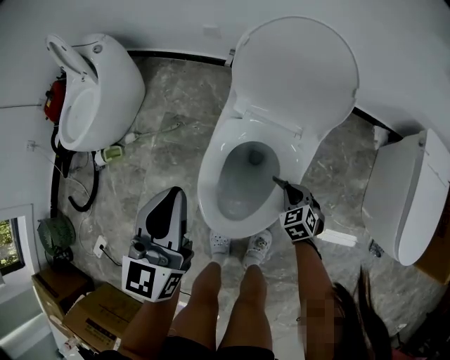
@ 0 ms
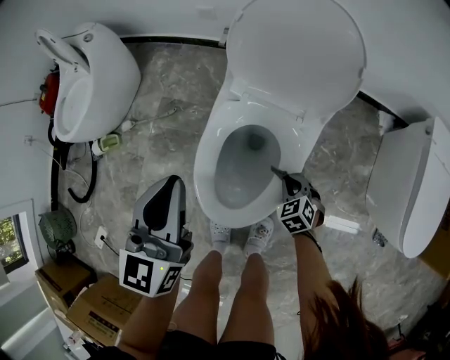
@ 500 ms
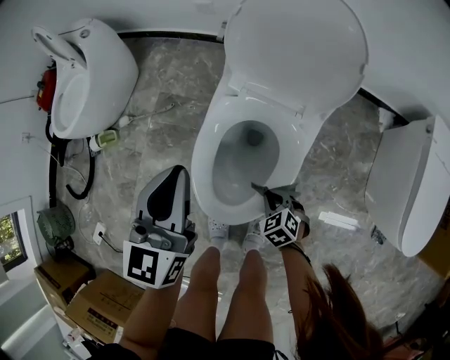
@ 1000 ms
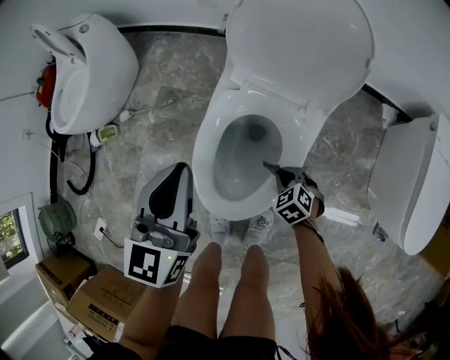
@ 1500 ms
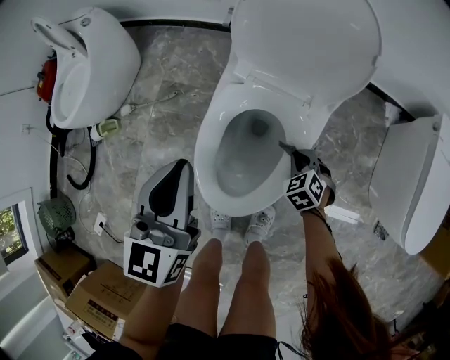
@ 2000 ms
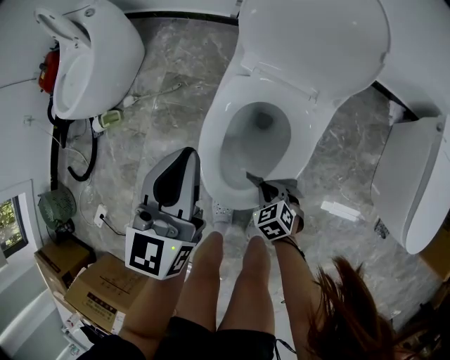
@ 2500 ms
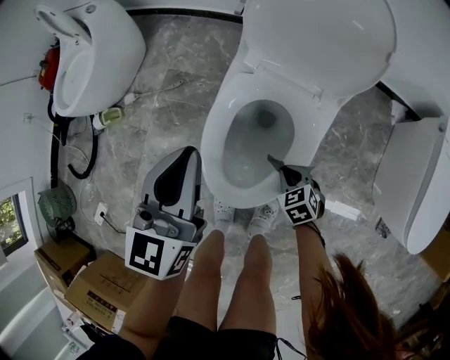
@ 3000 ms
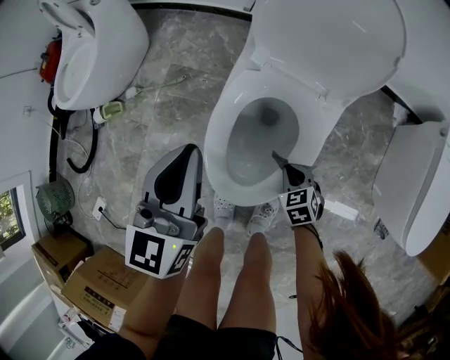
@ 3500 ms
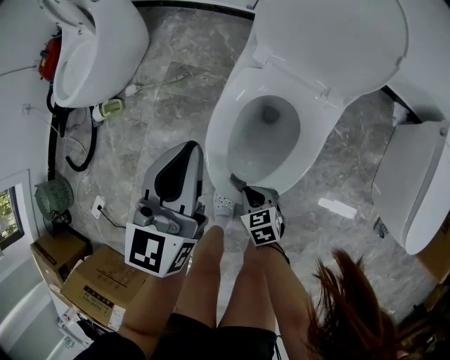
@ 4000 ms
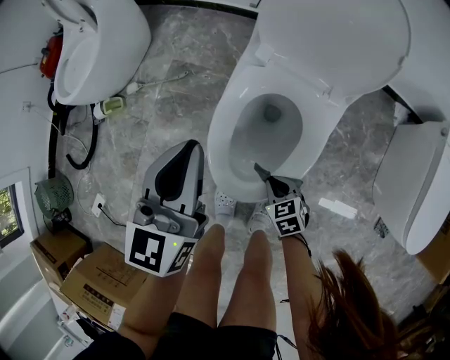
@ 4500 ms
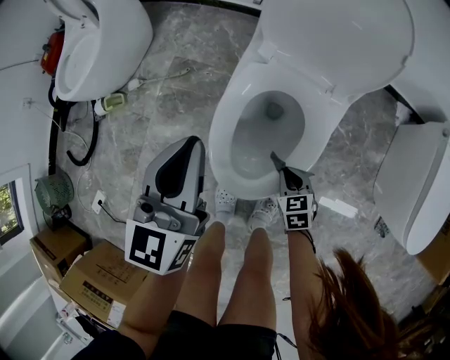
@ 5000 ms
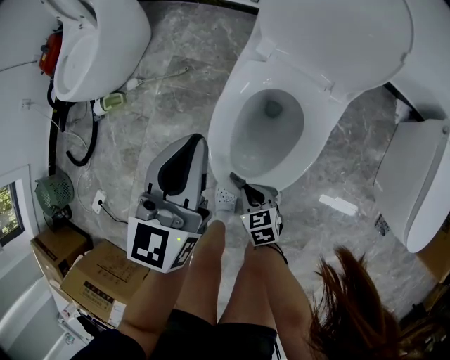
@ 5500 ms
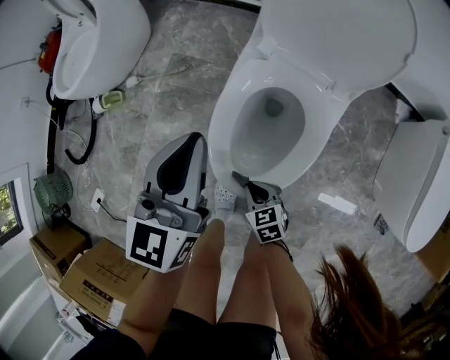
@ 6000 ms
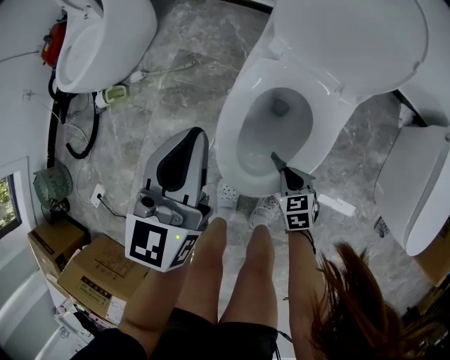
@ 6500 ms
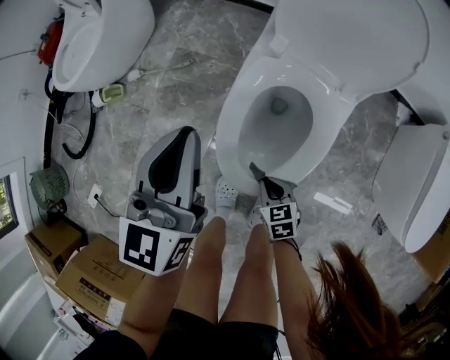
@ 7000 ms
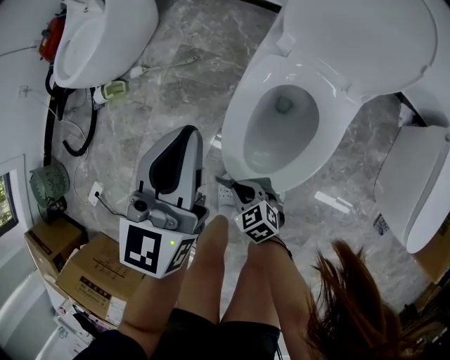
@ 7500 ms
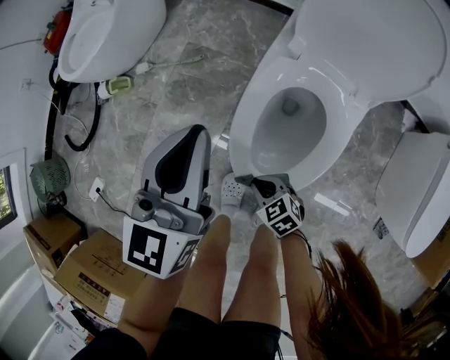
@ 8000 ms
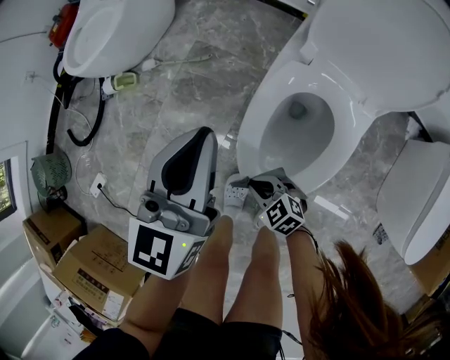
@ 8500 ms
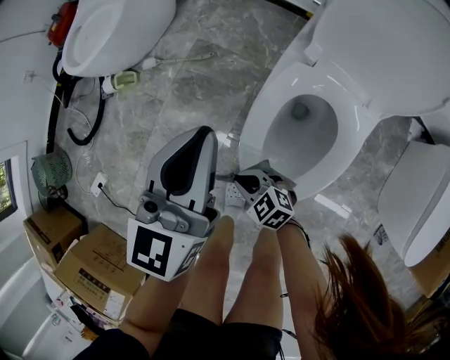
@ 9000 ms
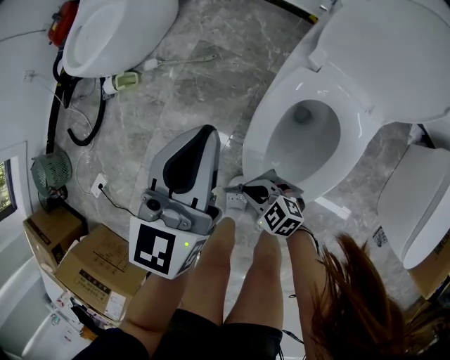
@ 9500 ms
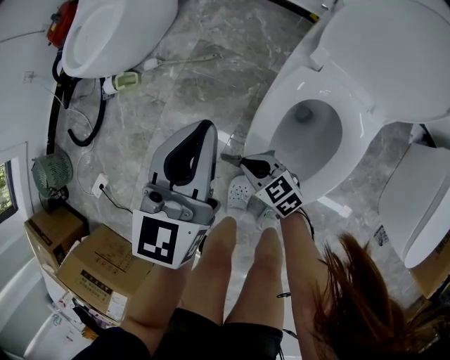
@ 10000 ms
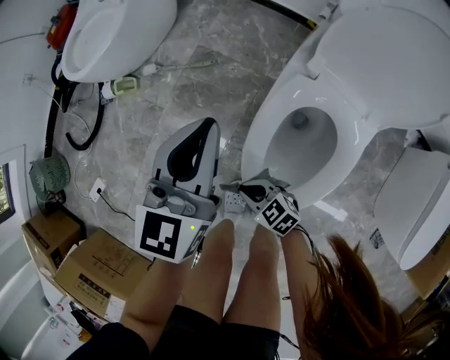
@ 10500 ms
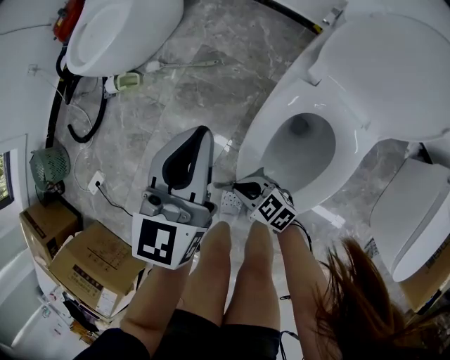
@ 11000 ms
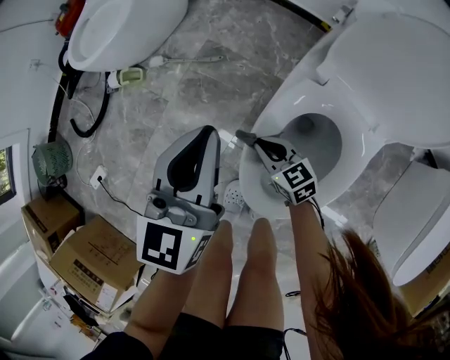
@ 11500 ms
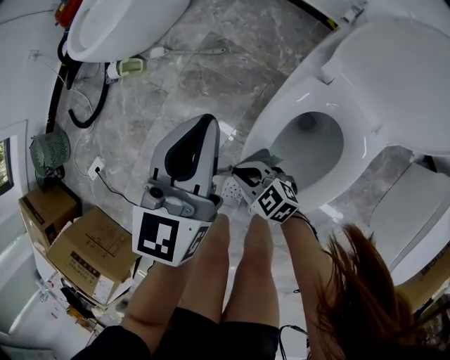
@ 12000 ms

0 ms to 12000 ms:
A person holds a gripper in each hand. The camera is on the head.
0 ms to 2000 ms: The left gripper goes approximately 5 cm downward. The right gripper moves about 5 cm backward and comes back.
2000 ms to 4000 ms: The right gripper moves left and right over some 20 cm, changing direction 2 times, and swivels some 30 degrees.
4000 ms to 6000 ms: The right gripper goes to the right and returns, some 10 cm each way.
6000 ms to 8000 ms: The right gripper moves approximately 10 cm to the right and comes back, and changes its angle by approximately 20 degrees, while the left gripper moves to the left, some 5 cm.
8000 ms to 10000 ms: The left gripper moves forward, roughly 5 cm. Meanwhile the right gripper shifts approximately 15 cm forward.
10000 ms to 12000 ms: The right gripper reaches roughly 10 cm to the right, then returns.

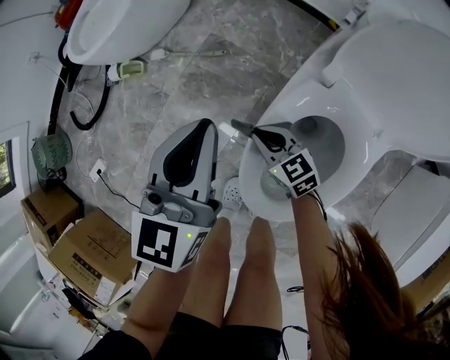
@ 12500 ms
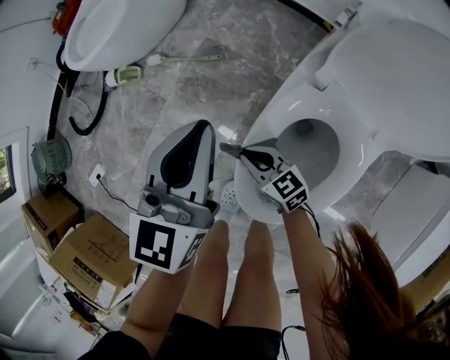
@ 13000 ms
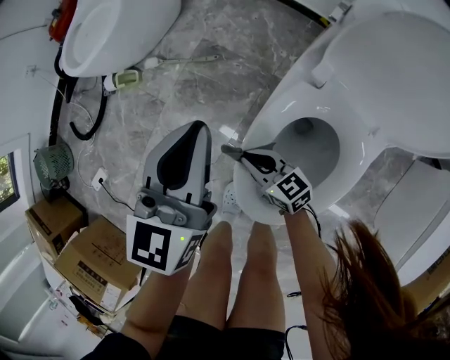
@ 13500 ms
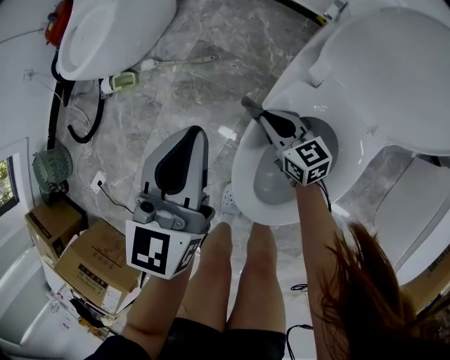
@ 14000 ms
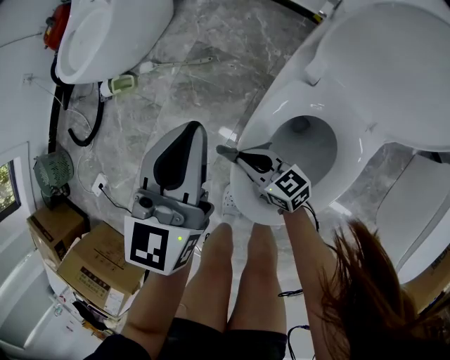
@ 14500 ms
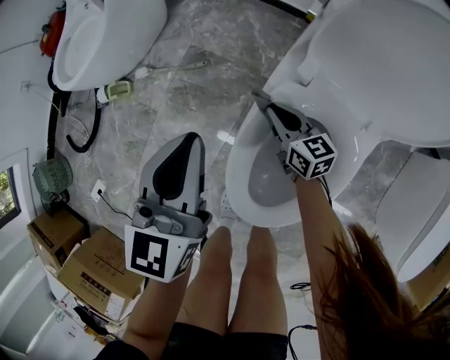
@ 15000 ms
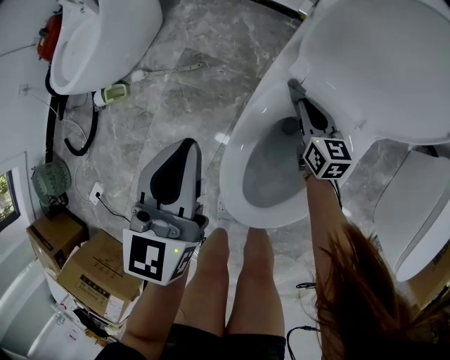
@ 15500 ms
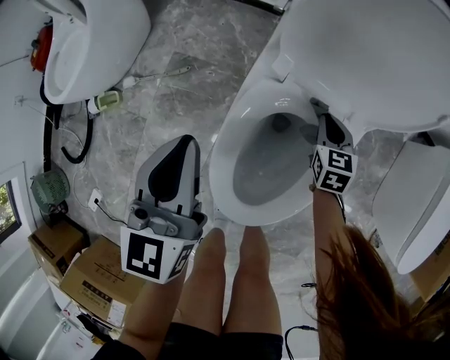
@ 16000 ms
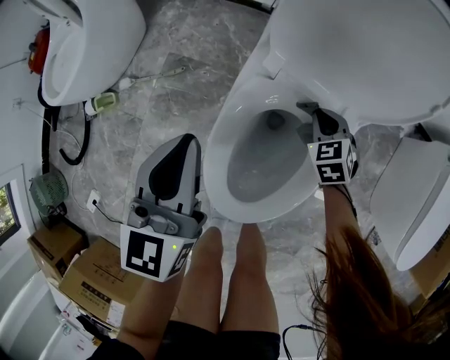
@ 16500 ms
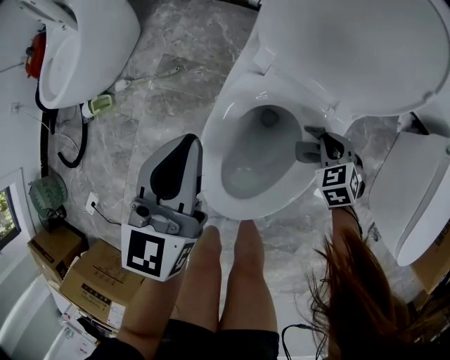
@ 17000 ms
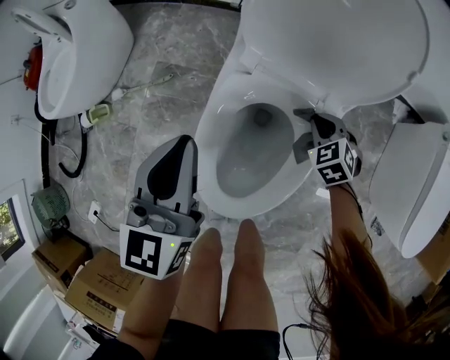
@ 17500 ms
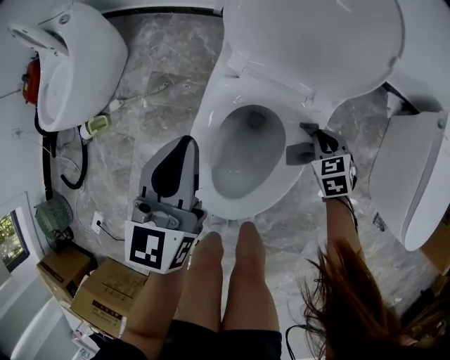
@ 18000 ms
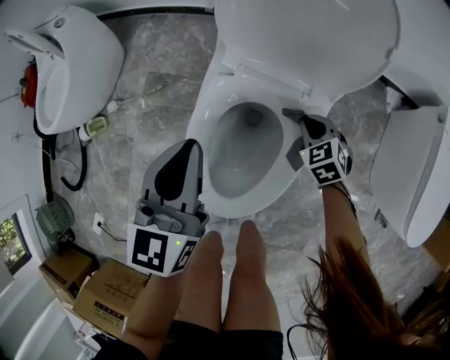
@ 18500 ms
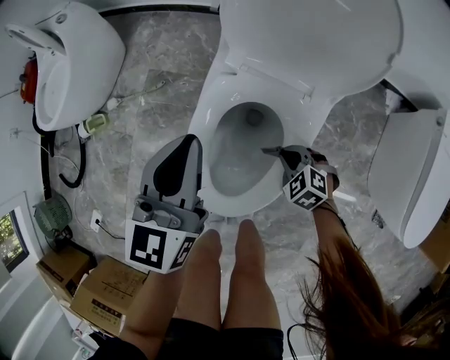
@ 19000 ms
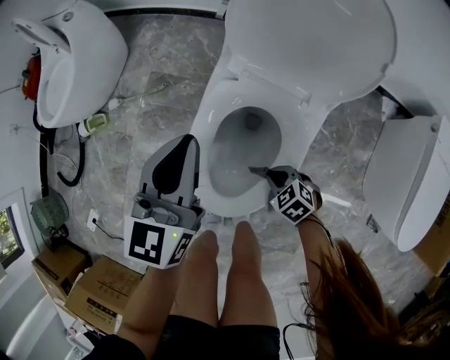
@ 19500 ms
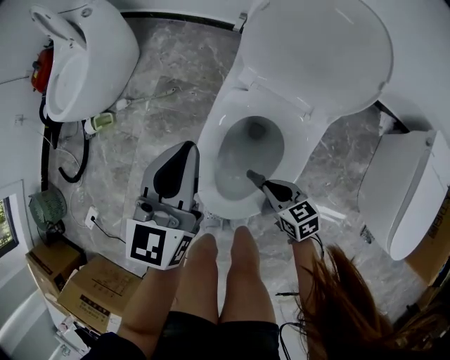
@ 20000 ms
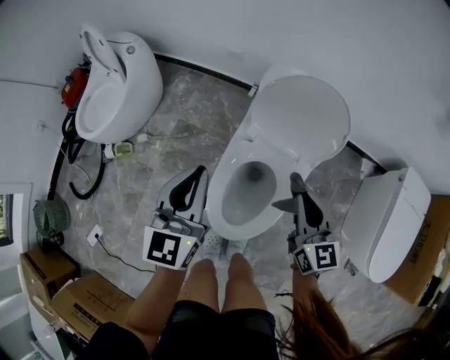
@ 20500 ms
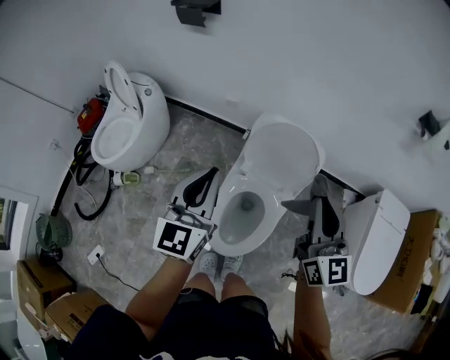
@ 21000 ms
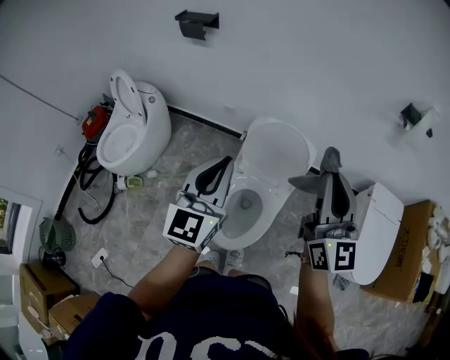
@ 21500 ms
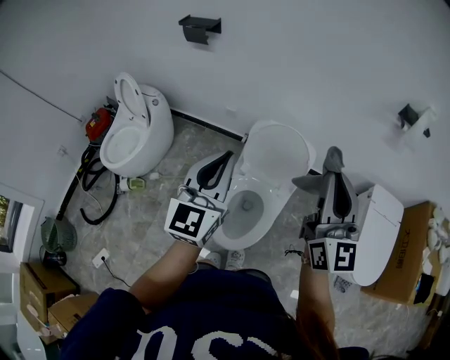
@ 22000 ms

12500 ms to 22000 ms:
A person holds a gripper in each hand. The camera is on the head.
12500 ms to 14500 ms: The right gripper reaches about 5 cm to the right, then returns.
14500 ms to 16500 ms: The right gripper moves roughly 30 cm, and tilts its fingers approximately 30 degrees downward; the left gripper shifts by roughly 10 cm.
16500 ms to 18000 ms: The right gripper heads to the right and backward, covering some 15 cm. The left gripper travels to the right by about 5 cm.
18000 ms to 20000 ms: The left gripper changes place by about 5 cm, while the right gripper shifts by about 20 cm, and rotates approximately 40 degrees.
20000 ms to 22000 ms: The left gripper shifts about 40 cm upward, and rotates about 20 degrees. The right gripper heads upward, covering roughly 70 cm, and angles its fingers upward, by about 60 degrees.

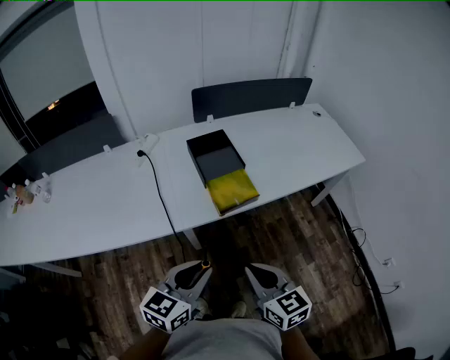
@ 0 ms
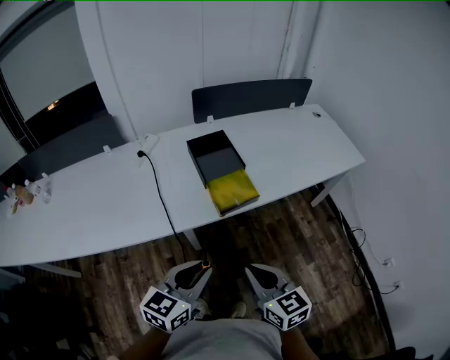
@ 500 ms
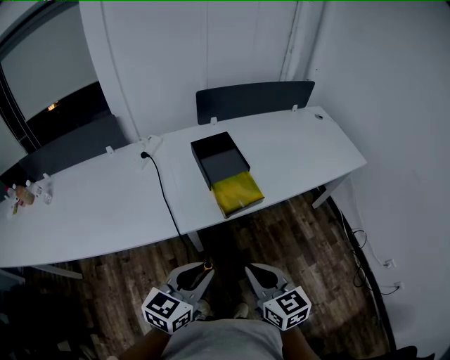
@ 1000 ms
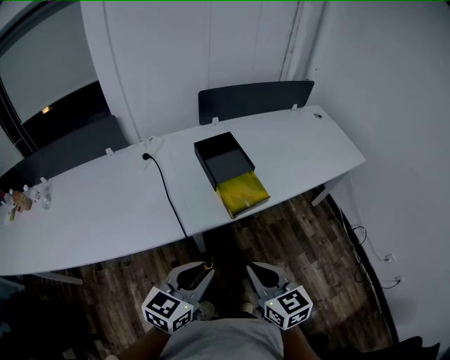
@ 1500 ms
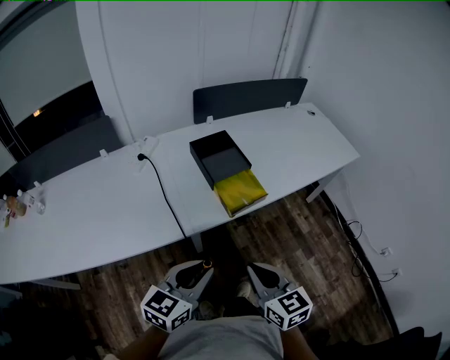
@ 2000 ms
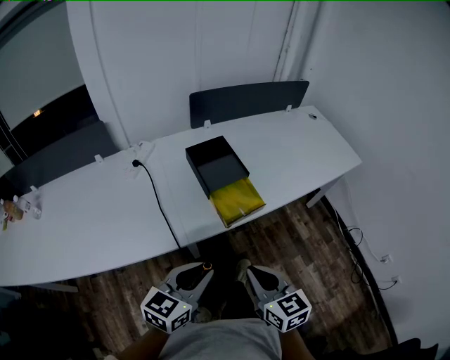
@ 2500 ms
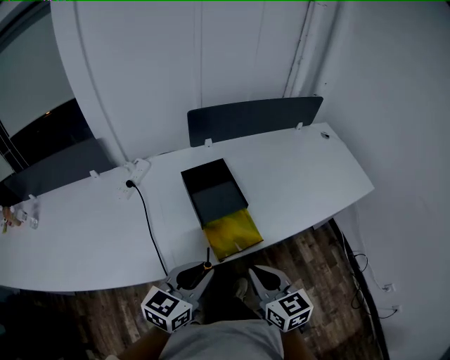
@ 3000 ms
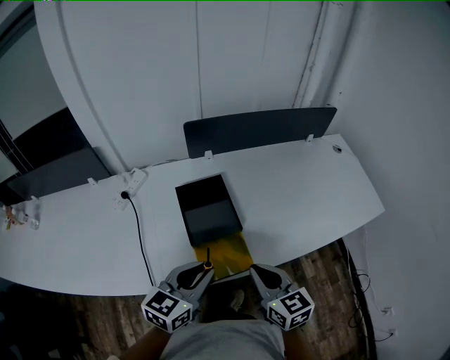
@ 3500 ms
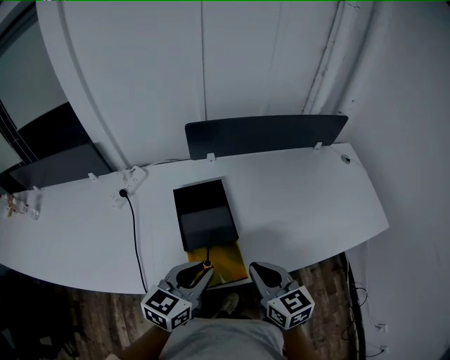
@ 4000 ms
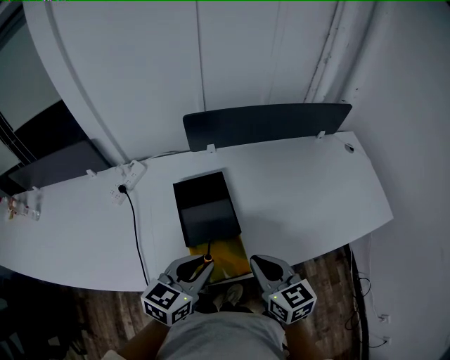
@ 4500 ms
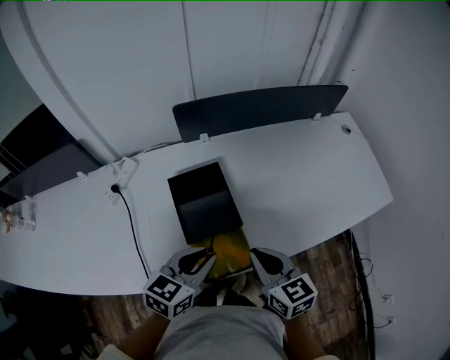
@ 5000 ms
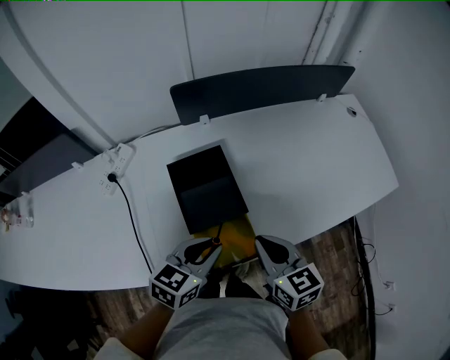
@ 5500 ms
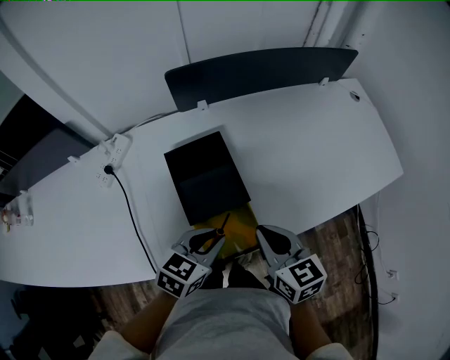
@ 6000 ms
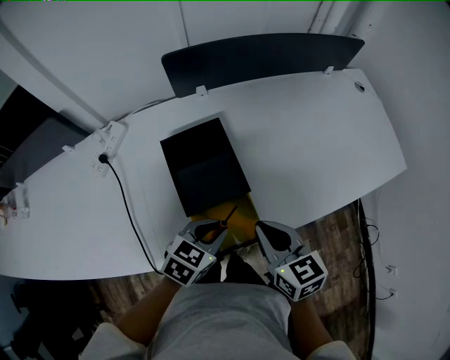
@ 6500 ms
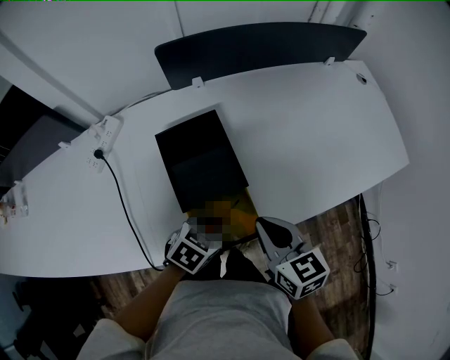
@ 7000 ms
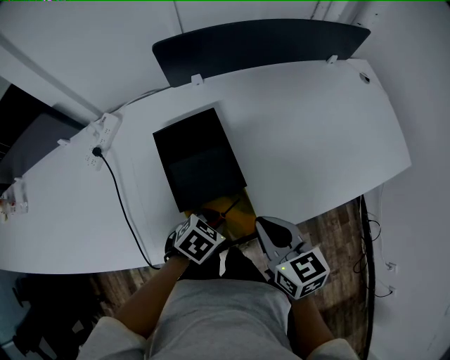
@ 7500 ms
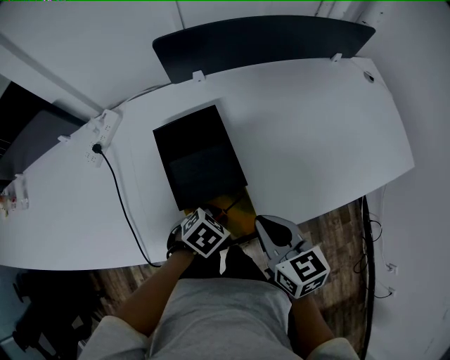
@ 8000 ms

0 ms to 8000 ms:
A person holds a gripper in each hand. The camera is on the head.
0 ms to 2000 ms: Both grippers move to the left, about 5 cm.
2000 ms to 4000 ms: Both grippers travel together forward and to the right, some 35 cm.
4000 ms to 6000 ms: The right gripper shifts by roughly 5 cm, while the left gripper moves downward, approximately 10 cm, and turns by approximately 20 degrees.
6000 ms to 8000 ms: The left gripper shifts approximately 15 cm downward, and tilts its fingers approximately 30 degrees downward.
